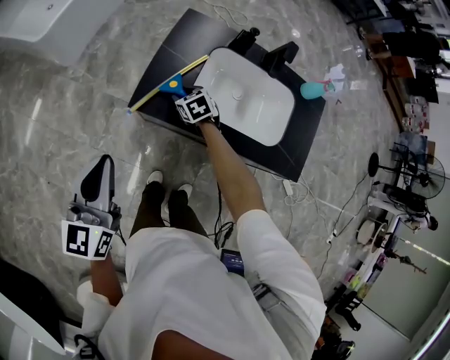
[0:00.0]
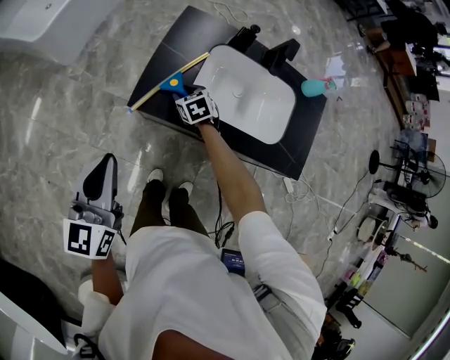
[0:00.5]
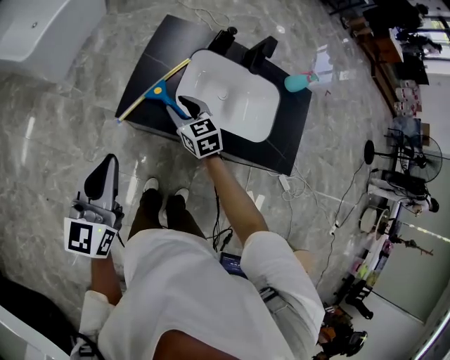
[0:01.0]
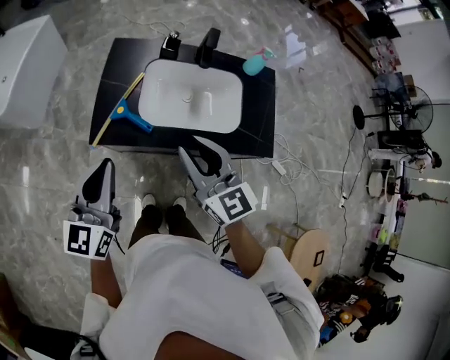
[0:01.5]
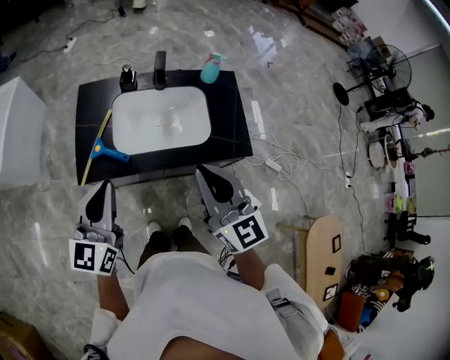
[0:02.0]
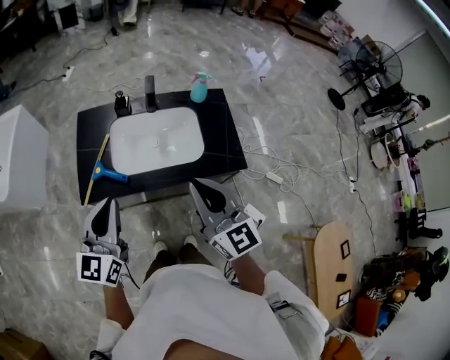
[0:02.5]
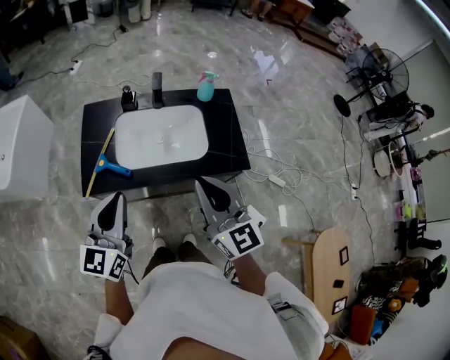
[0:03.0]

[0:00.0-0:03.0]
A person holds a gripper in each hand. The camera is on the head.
0:00.0 to 0:01.5: The left gripper goes about 10 cm to the right, while the right gripper travels upward and backward by roughly 40 cm, and angles its fingers upward, by approximately 50 degrees.
0:01.5 to 0:03.0: The right gripper shifts roughly 15 cm to the right, upward and backward, and closes up, while the left gripper heads to the right, covering some 10 cm.

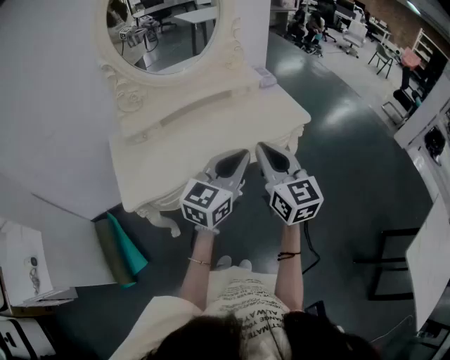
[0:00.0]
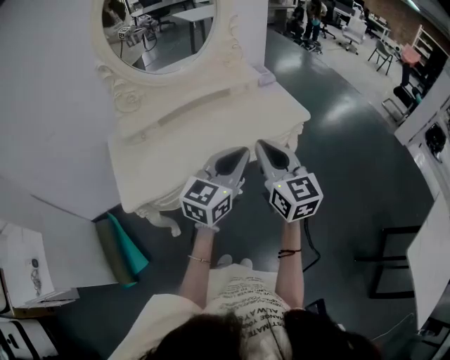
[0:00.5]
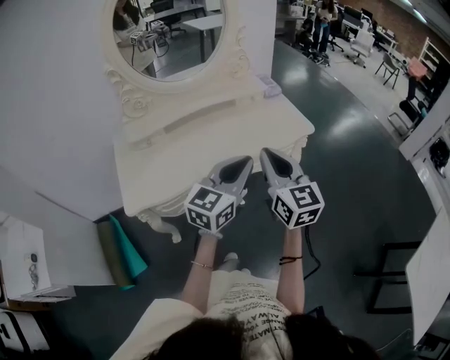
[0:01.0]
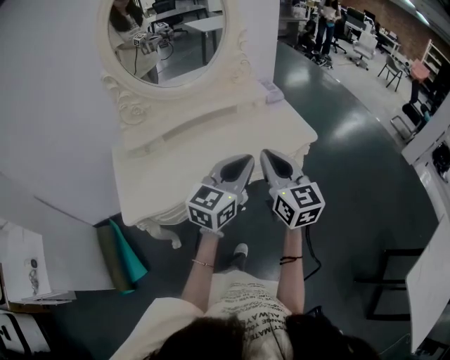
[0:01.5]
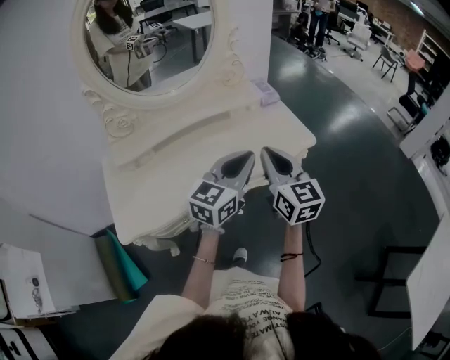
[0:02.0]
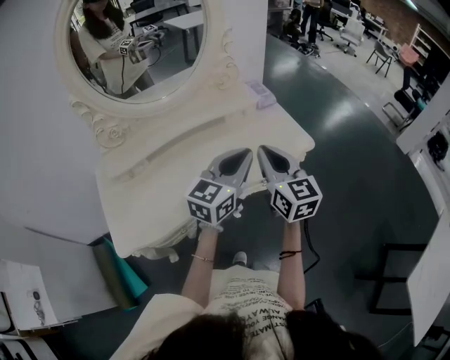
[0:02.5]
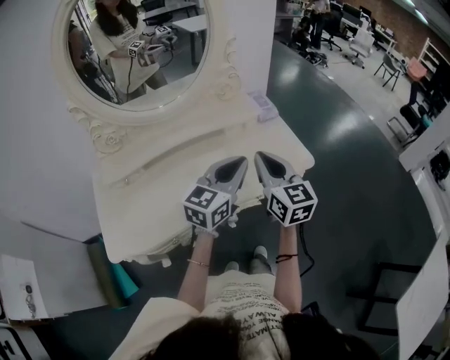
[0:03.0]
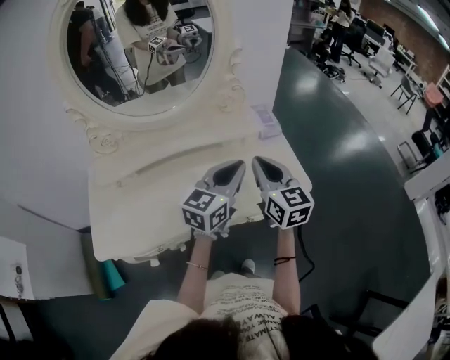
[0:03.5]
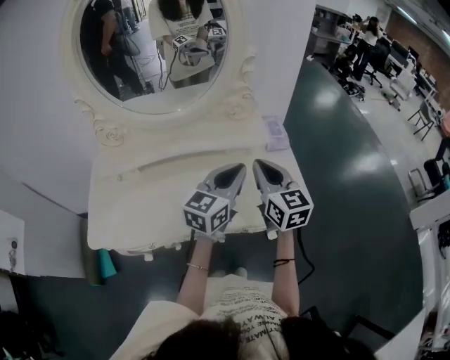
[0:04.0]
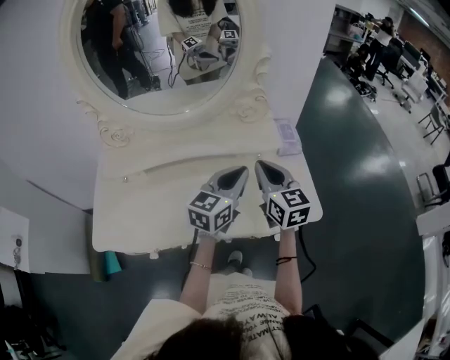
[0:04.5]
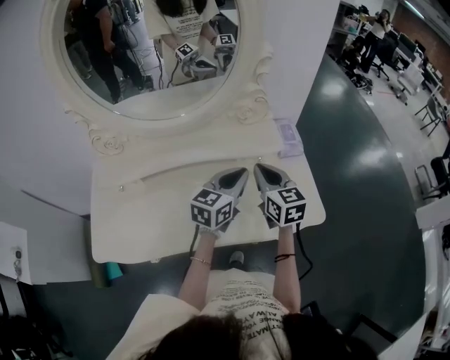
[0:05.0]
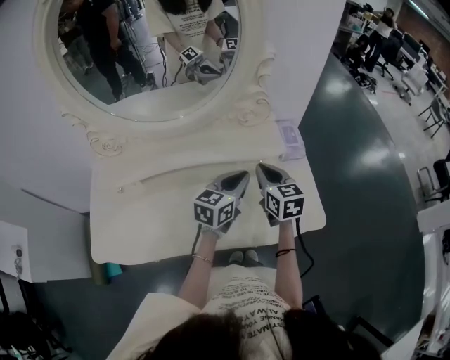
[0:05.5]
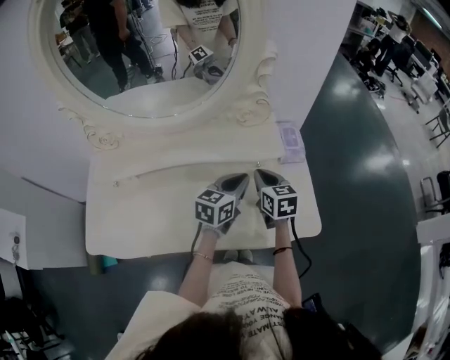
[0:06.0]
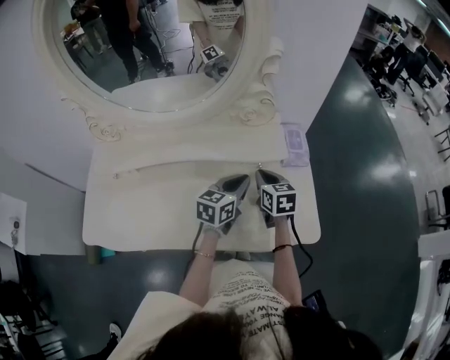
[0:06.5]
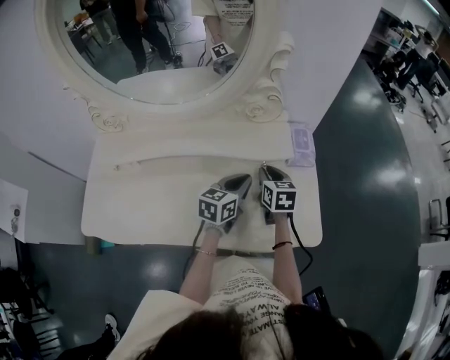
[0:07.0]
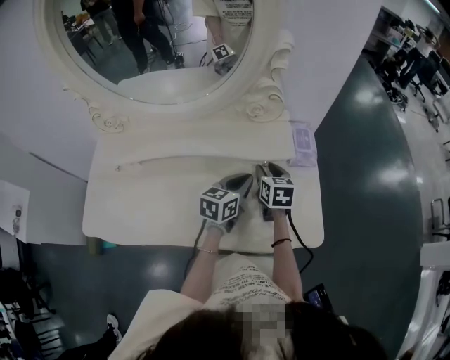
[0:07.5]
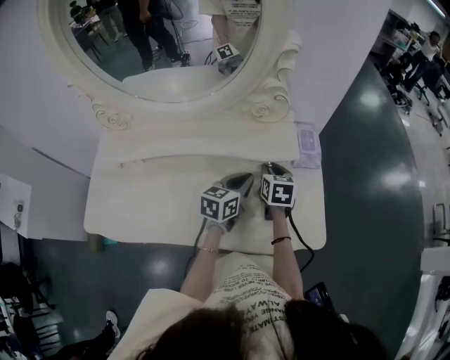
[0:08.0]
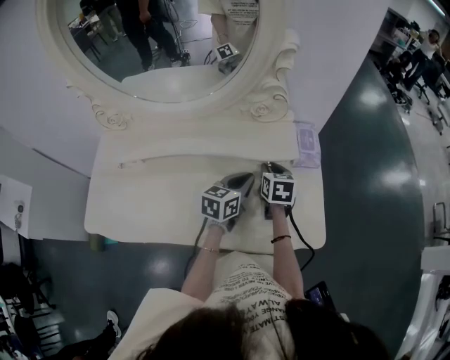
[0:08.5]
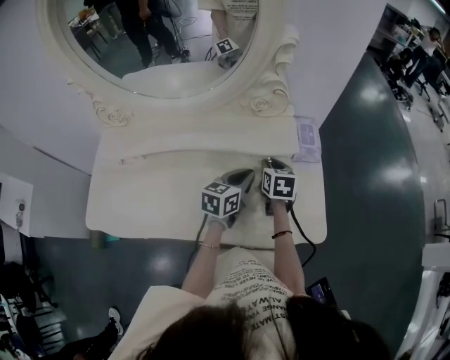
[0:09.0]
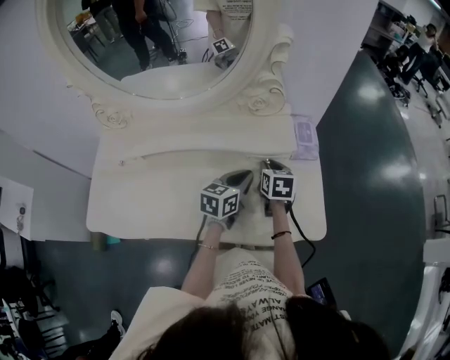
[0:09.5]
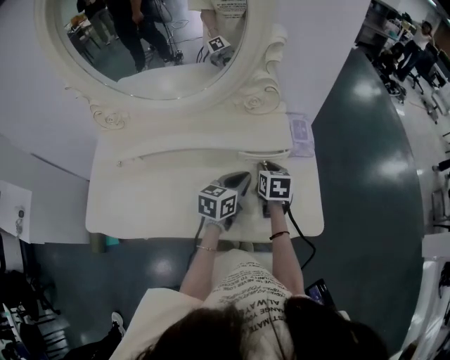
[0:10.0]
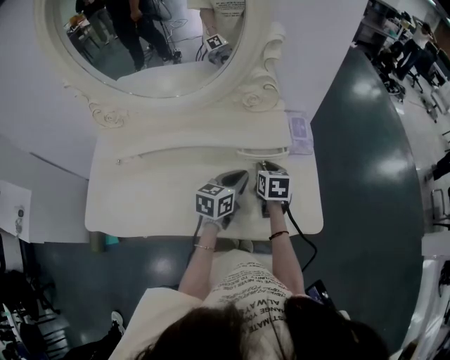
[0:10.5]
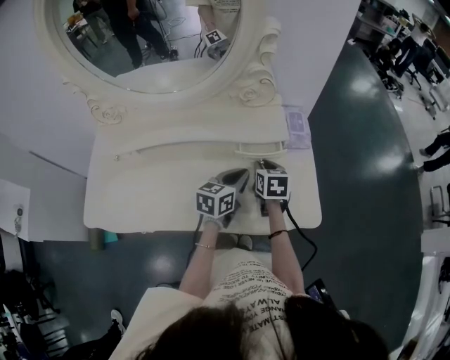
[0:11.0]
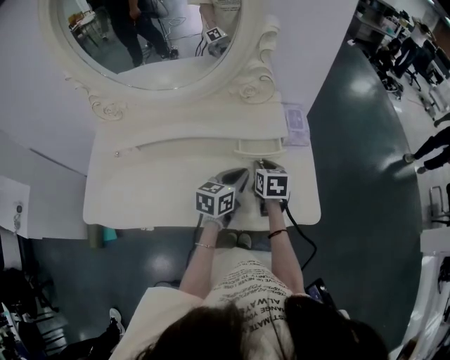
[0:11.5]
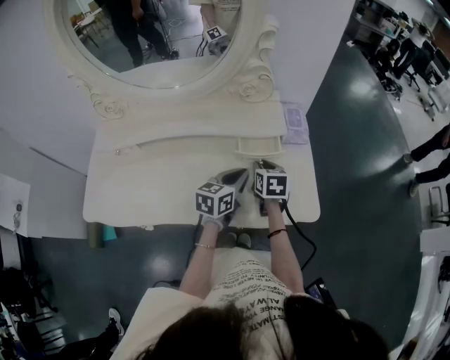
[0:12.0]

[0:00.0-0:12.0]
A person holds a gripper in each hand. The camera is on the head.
0:00.0 to 0:02.0: The two grippers go approximately 15 cm forward.
0:02.0 to 0:04.0: Both grippers travel together forward, some 20 cm.
0:04.0 to 0:06.0: The two grippers go about 20 cm downward and forward. The right gripper rotates approximately 20 degrees.
0:06.0 to 0:08.0: The left gripper travels downward by about 5 cm. Meanwhile the right gripper heads downward and forward, covering approximately 10 cm, and opens its fingers.
0:08.0 to 0:10.0: The grippers make only small movements.
0:10.0 to 0:12.0: There are only small adjustments of the grippers.

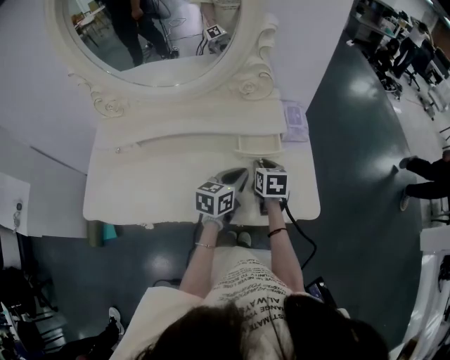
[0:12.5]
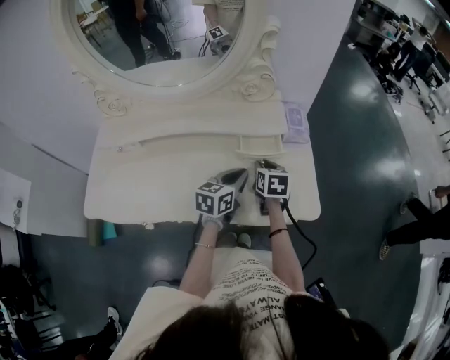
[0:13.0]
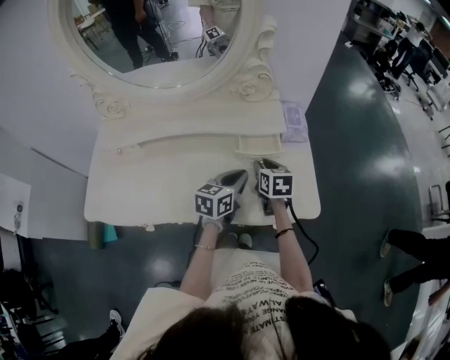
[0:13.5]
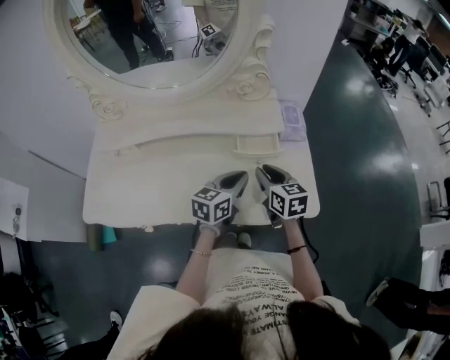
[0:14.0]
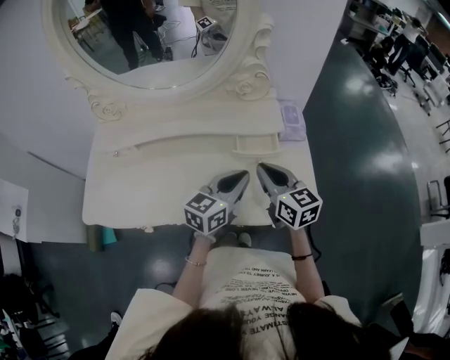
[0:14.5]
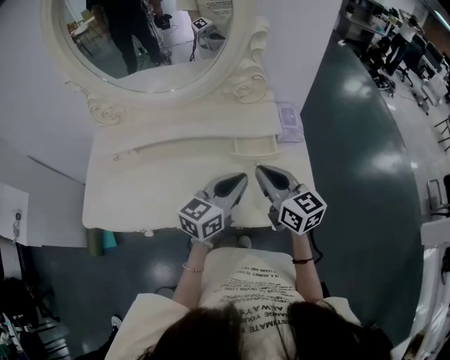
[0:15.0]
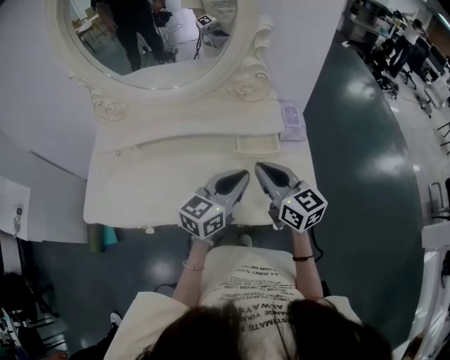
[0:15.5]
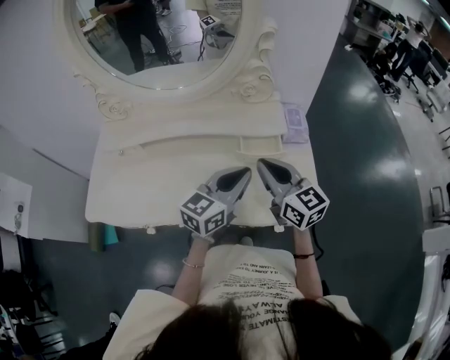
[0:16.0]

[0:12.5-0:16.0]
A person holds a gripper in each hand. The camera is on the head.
0:12.5 to 0:14.5: The right gripper moves upward and backward, about 15 cm, swivels about 30 degrees, and closes up. The left gripper goes about 10 cm upward.
0:14.5 to 0:16.0: The right gripper ends up about 5 cm from where it was.

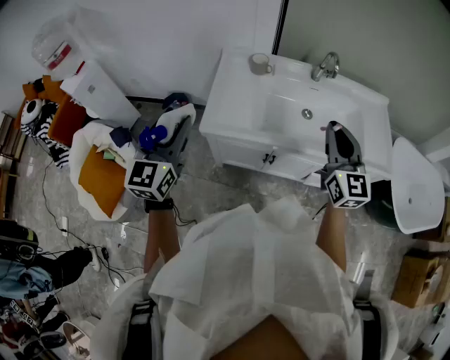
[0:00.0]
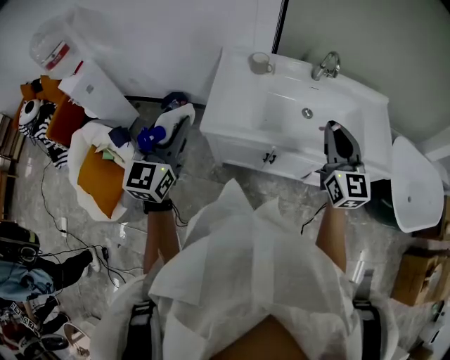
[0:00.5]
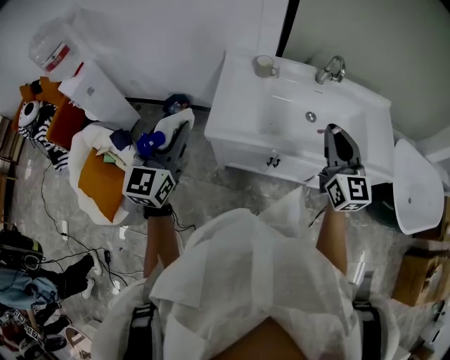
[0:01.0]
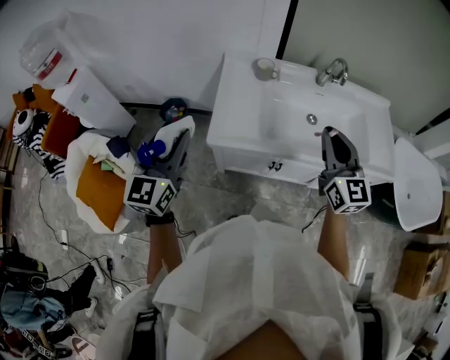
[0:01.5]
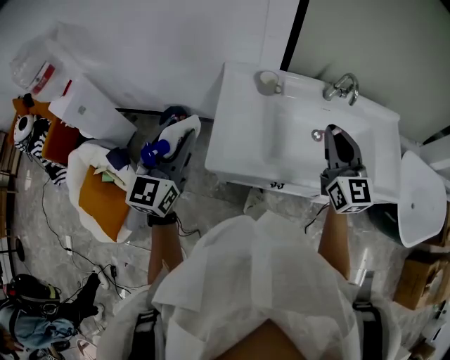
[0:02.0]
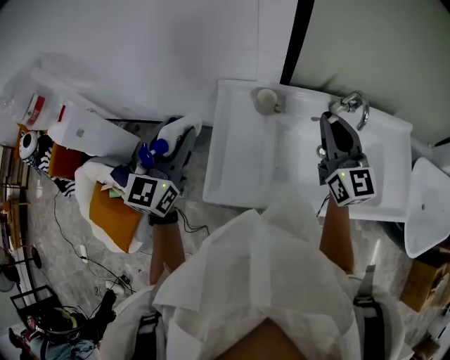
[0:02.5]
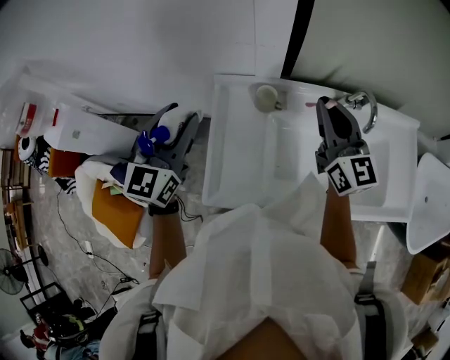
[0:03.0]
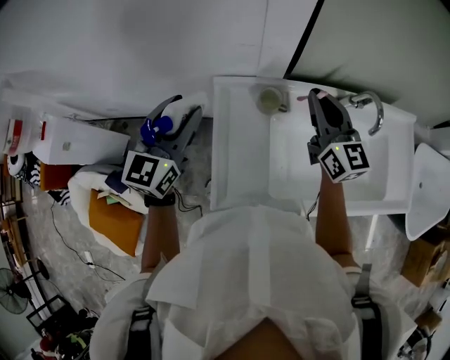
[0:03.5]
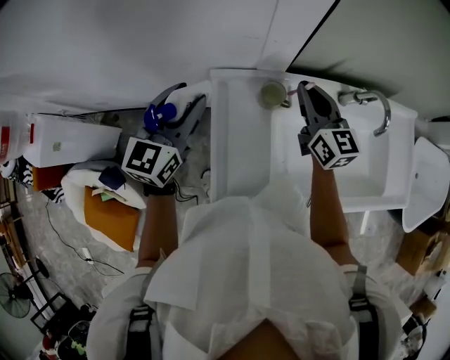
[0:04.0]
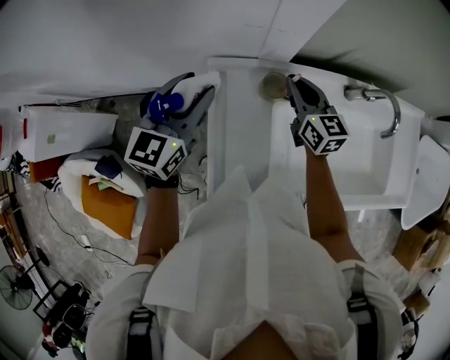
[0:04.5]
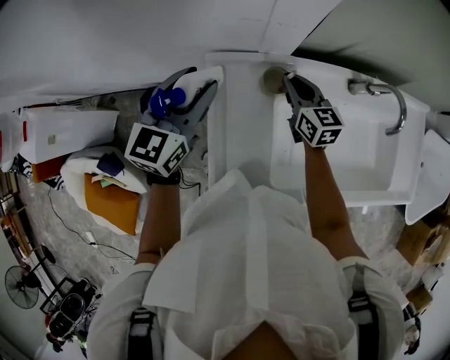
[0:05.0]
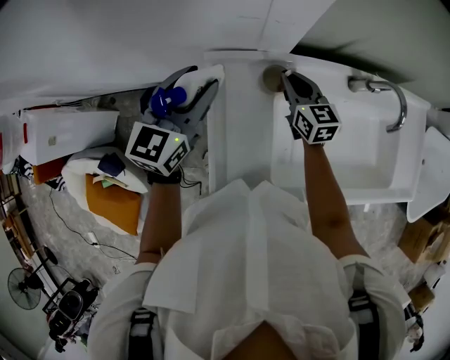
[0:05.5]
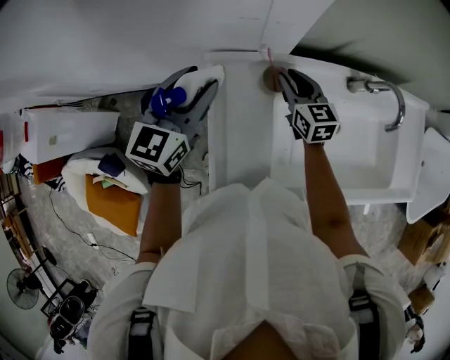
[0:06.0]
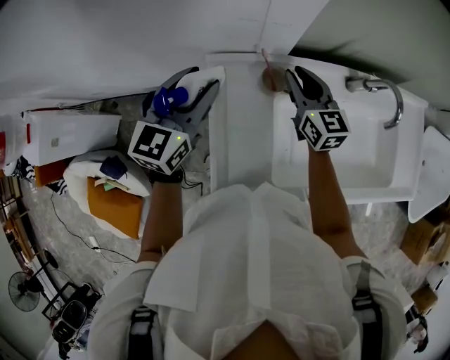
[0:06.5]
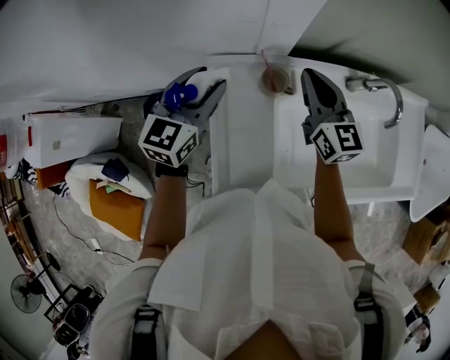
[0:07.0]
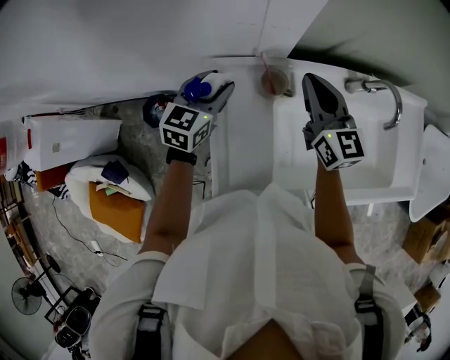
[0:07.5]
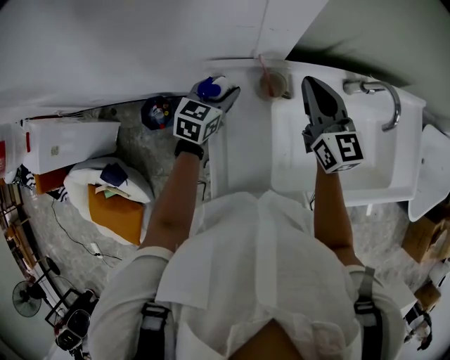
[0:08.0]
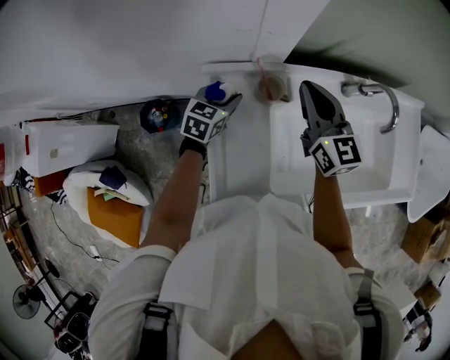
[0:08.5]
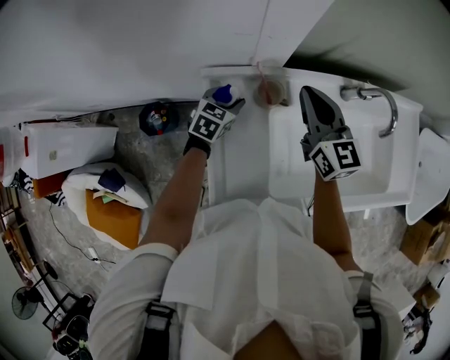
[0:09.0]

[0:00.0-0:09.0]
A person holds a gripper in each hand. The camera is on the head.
0:00.0 to 0:02.0: The right gripper goes about 15 cm forward and to the left. Meanwhile the left gripper travels forward by about 15 cm.
0:02.0 to 0:04.5: The left gripper heads forward, covering about 35 cm, and turns by roughly 20 degrees; the right gripper is displaced forward and downward by about 35 cm, and turns by approximately 20 degrees.
0:04.5 to 0:07.0: The right gripper shifts approximately 5 cm upward.
0:07.0 to 0:09.0: The left gripper shifts roughly 20 cm downward, and swivels about 30 degrees.
